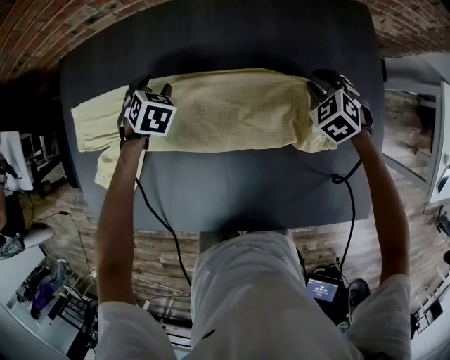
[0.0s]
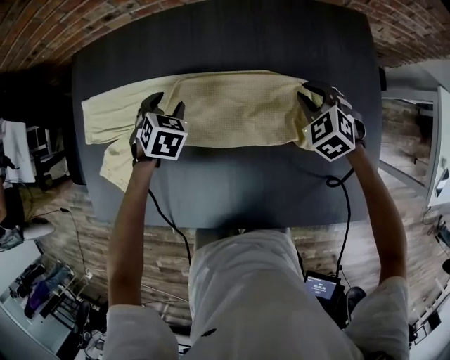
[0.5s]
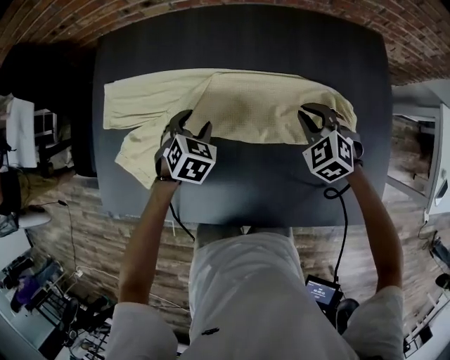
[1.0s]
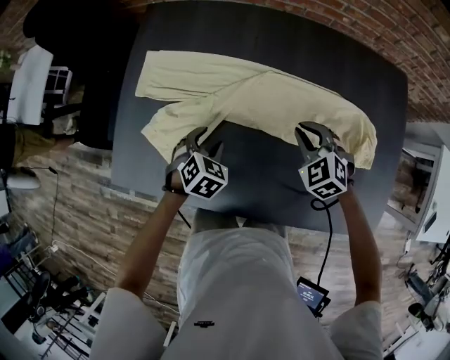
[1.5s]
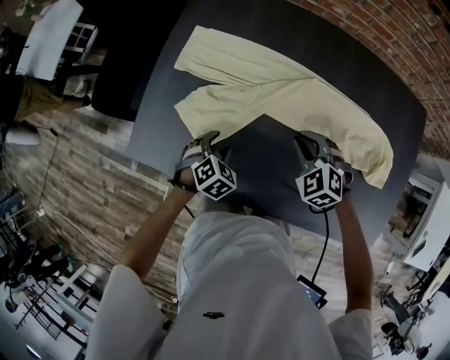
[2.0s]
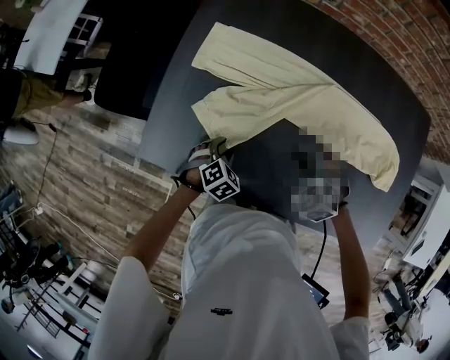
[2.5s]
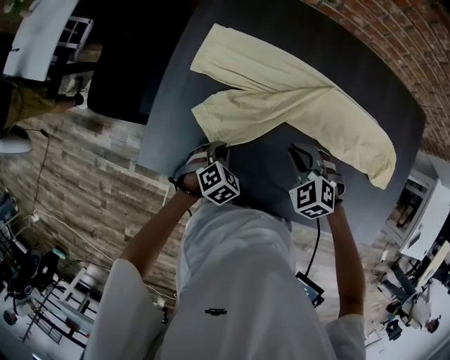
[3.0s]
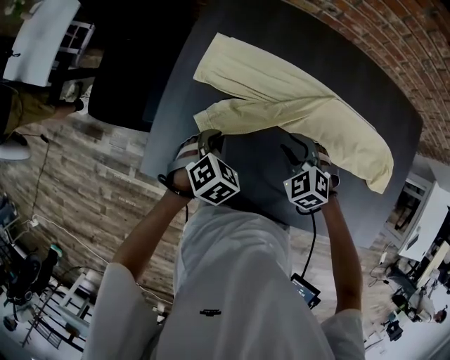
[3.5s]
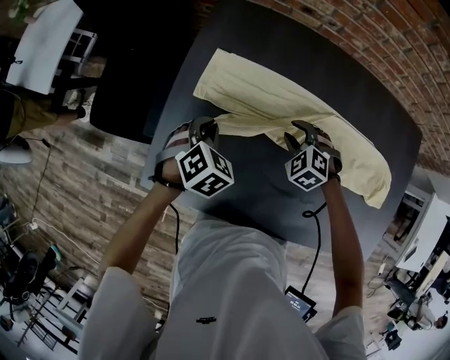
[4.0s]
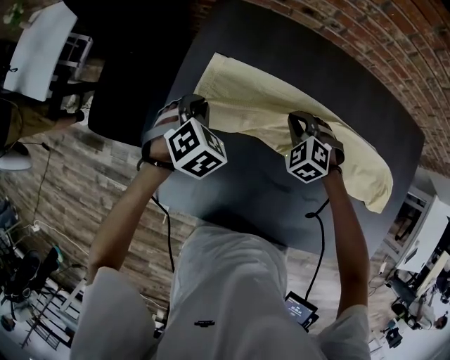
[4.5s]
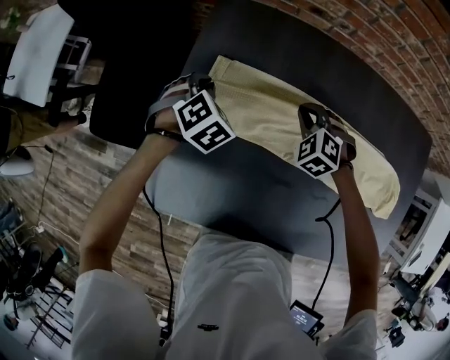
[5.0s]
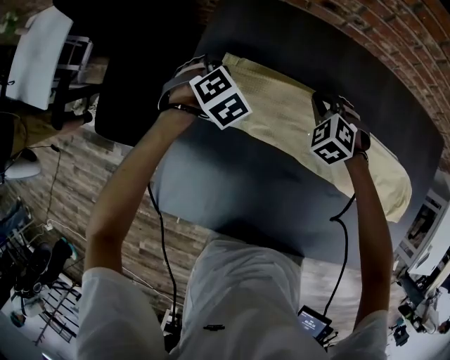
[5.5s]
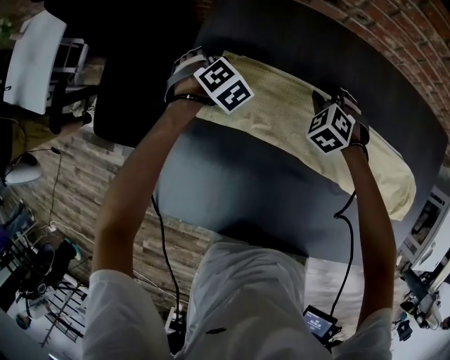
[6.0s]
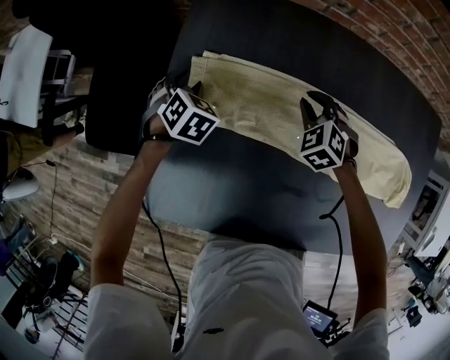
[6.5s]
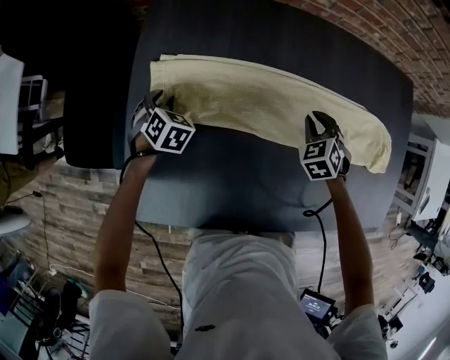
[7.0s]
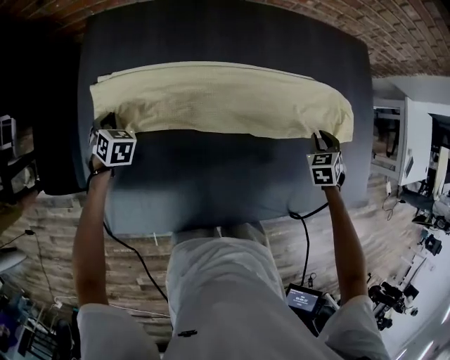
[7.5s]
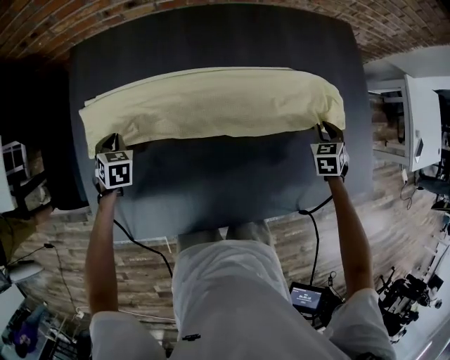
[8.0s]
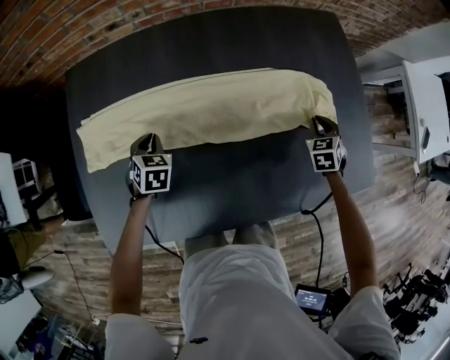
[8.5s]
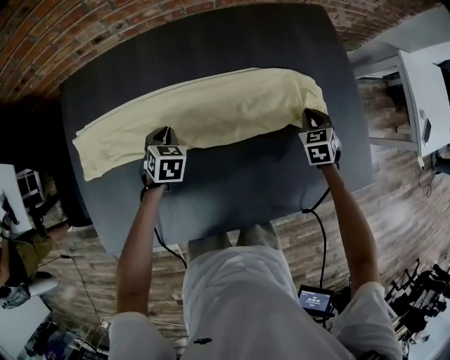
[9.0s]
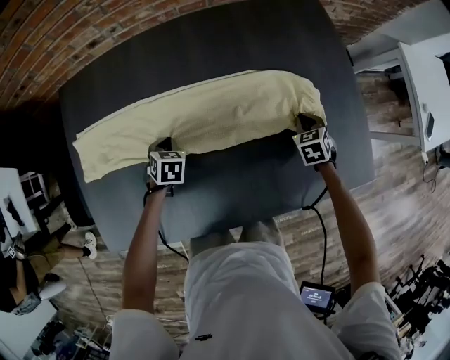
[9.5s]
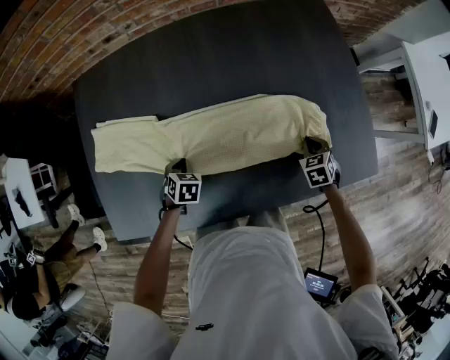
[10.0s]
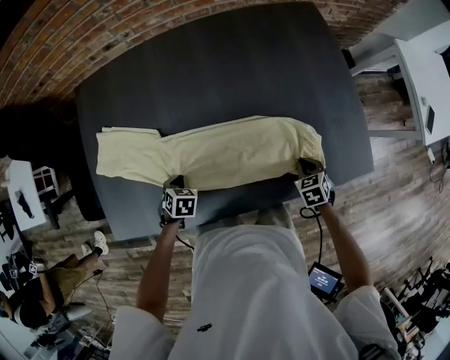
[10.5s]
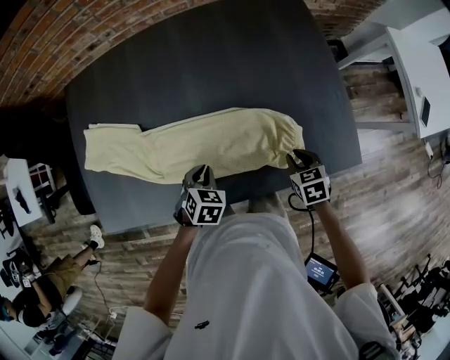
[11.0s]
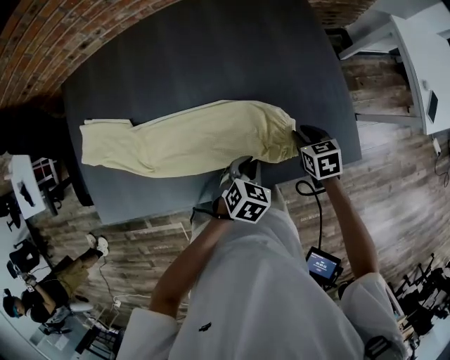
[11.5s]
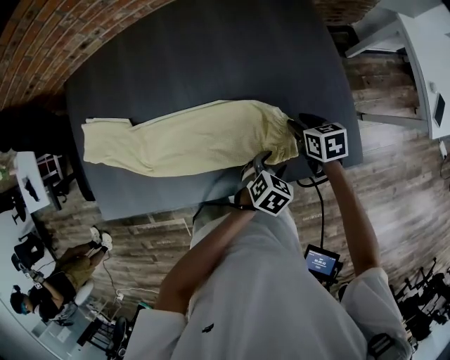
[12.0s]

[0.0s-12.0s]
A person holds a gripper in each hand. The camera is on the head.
0.0s to 2.0s: The right gripper goes roughly 40 cm to the left, and swivels approximately 30 degrees. The left gripper goes about 35 cm backward and to the left.
2.0s to 4.0s: The right gripper heads forward and to the left, covering roughly 15 cm, and opens up; the left gripper moves forward, to the left and upward, approximately 20 cm, and closes.
4.0s to 6.0s: The left gripper heads forward and downward, covering about 25 cm, and opens, while the right gripper goes about 15 cm forward, and closes and opens again.
6.0s to 8.0s: The left gripper shifts by some 20 cm, and closes up. The right gripper ends up some 60 cm from where it was, and twists roughly 50 degrees clockwise, seen from behind.
8.0s to 10.0s: The right gripper travels backward by approximately 10 cm; the left gripper is displaced to the right by about 25 cm.
10.0s to 12.0s: The right gripper moves to the right, roughly 10 cm, rotates some 40 degrees, and opens. The left gripper heads to the right, covering about 50 cm, turns by about 30 degrees, and opens up.

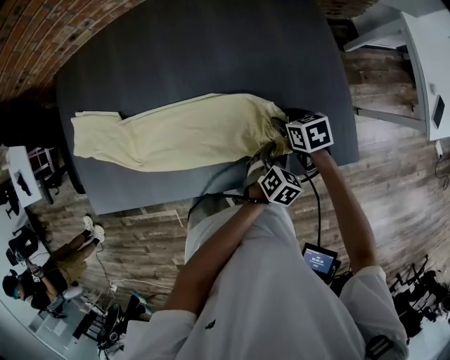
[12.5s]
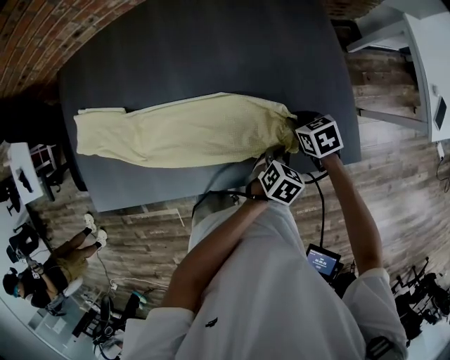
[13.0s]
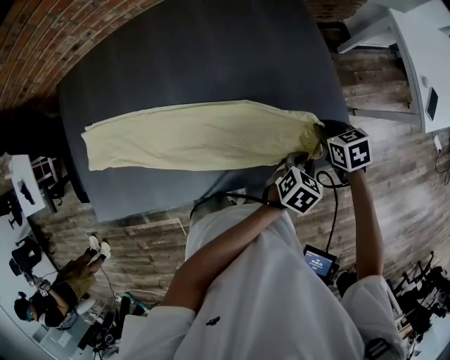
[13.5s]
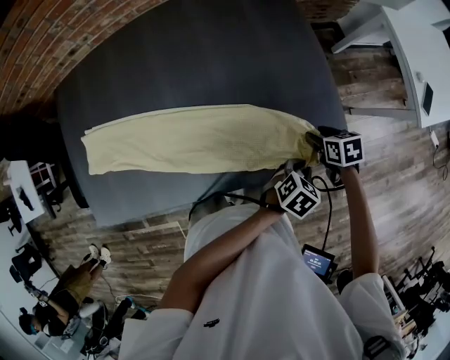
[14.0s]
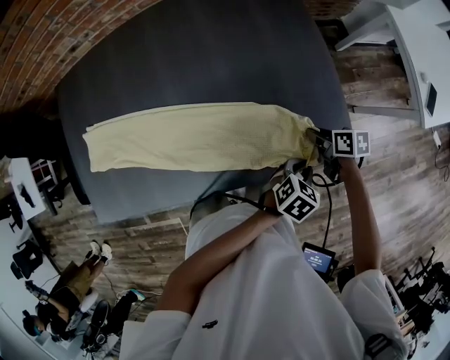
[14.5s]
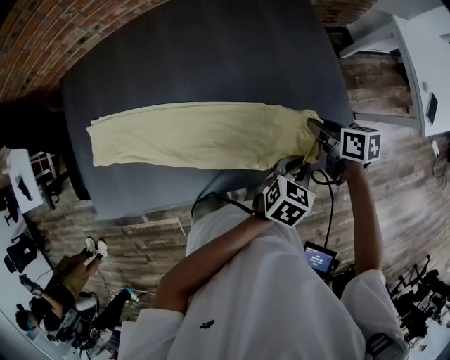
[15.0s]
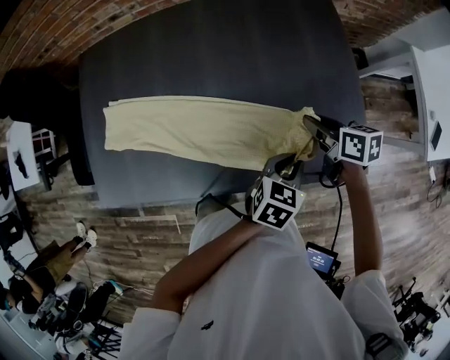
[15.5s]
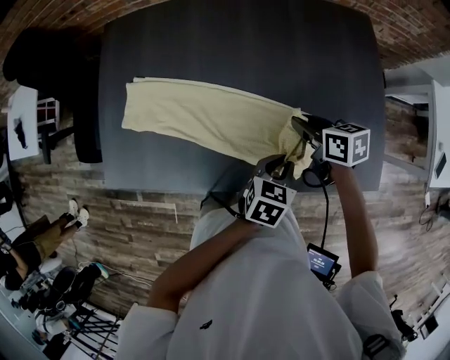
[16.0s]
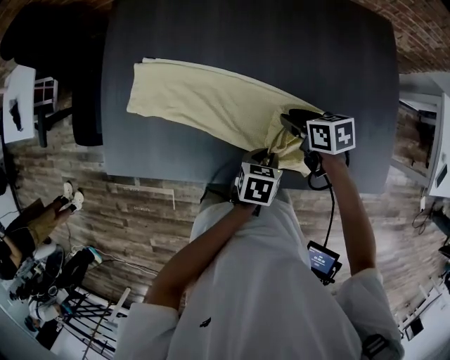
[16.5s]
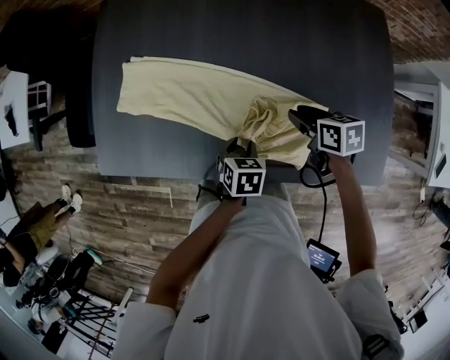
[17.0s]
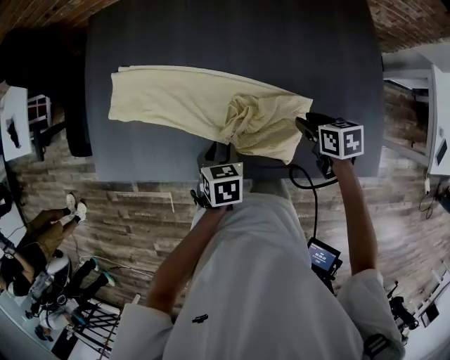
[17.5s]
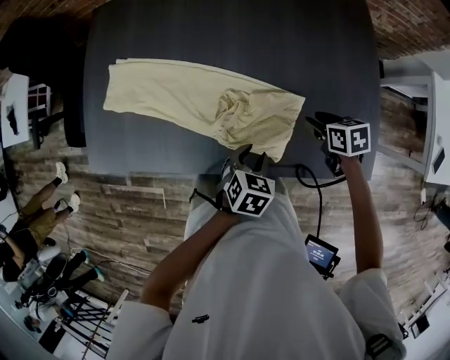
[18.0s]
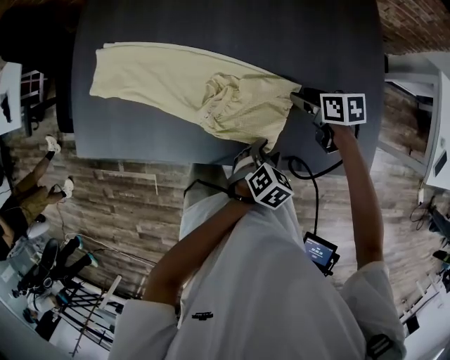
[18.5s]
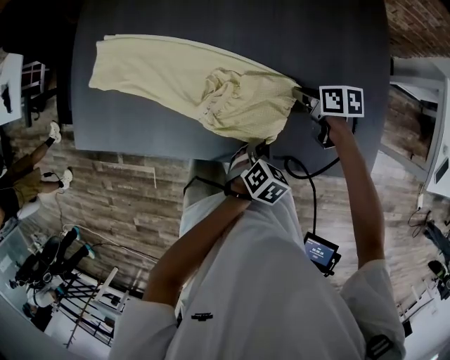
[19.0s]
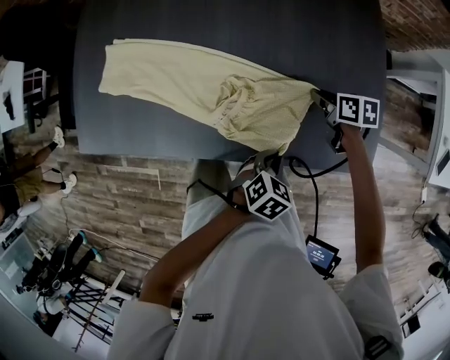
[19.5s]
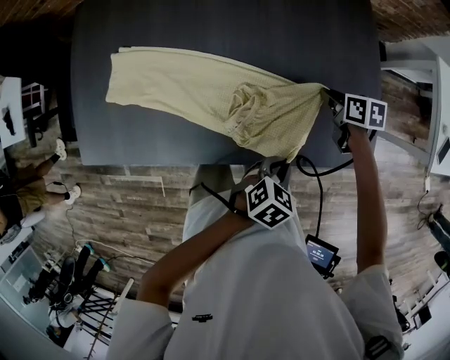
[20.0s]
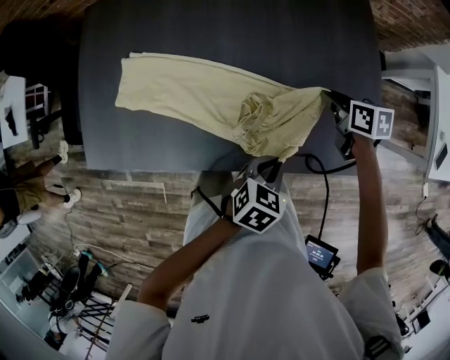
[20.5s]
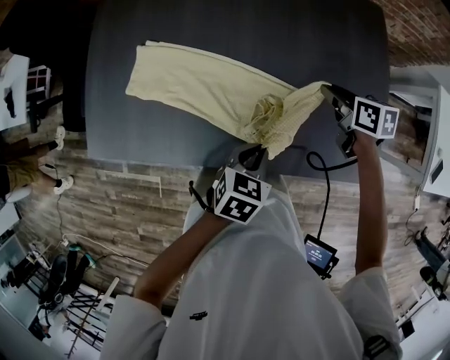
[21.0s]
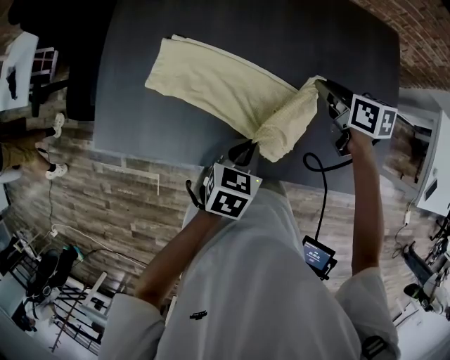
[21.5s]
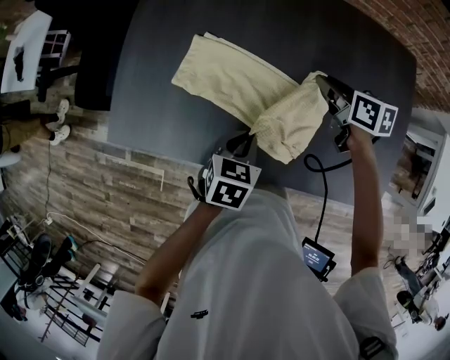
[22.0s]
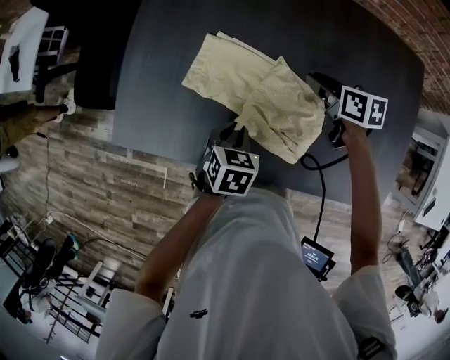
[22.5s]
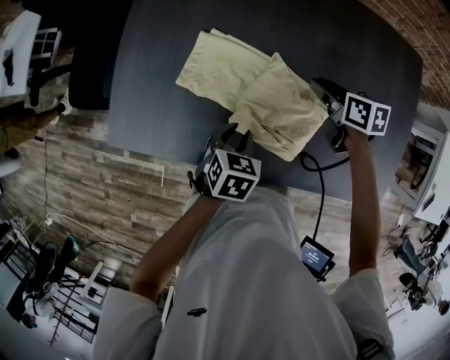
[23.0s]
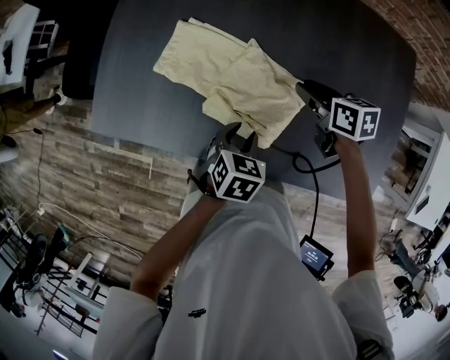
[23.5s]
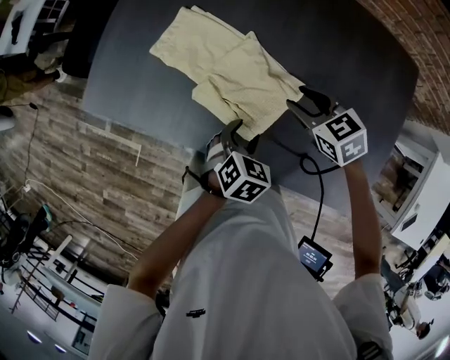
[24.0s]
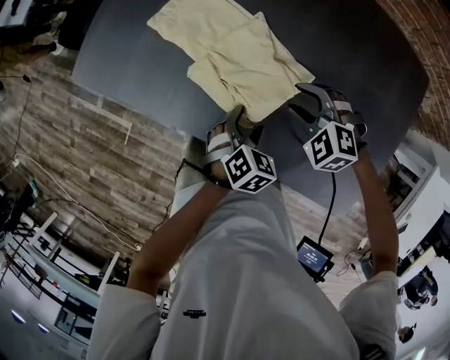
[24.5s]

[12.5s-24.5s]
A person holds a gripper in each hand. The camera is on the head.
12.5s to 14.5s: The right gripper shifts by approximately 10 cm, changes its angle by roughly 30 degrees, and closes; the left gripper shifts some 10 cm upward, swivels some 20 degrees, and closes.
14.5s to 16.5s: The left gripper moves about 10 cm upward and comes back, and rotates around the line of its fingers by approximately 40 degrees, counterclockwise from behind. The right gripper changes place by some 40 cm, swivels approximately 30 degrees, and opens.
16.5s to 18.5s: The right gripper is displaced to the right by roughly 20 cm, and opens its fingers; the left gripper heads to the right, backward and downward, covering some 20 cm, swivels approximately 30 degrees, and opens up.
18.5s to 20.5s: The right gripper travels upward by approximately 5 cm, and closes up. Meanwhile the left gripper goes roughly 10 cm upward, and closes up.
20.5s to 22.5s: Both grippers travel together to the left and forward, about 35 cm. The right gripper opens its fingers. The left gripper swivels about 30 degrees.
22.5s to 24.5s: The left gripper moves to the right and backward, roughly 20 cm, and opens its fingers; the right gripper travels backward by about 15 cm, twists approximately 90 degrees counterclockwise, seen from behind, and opens up.

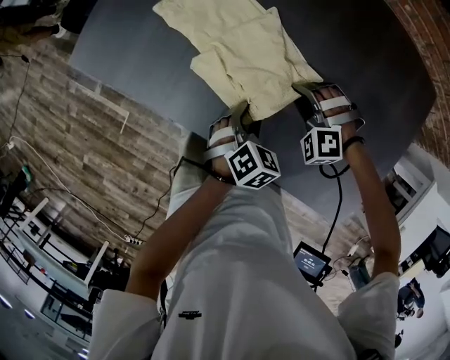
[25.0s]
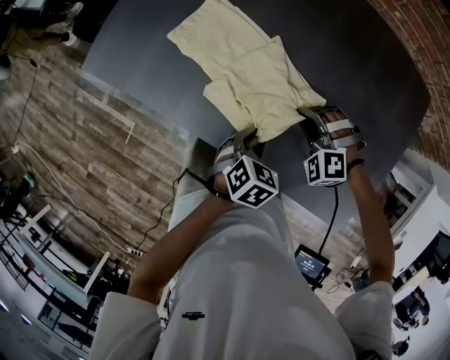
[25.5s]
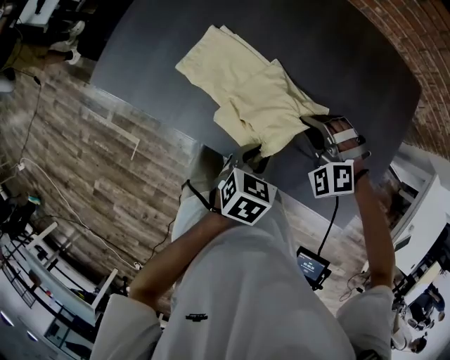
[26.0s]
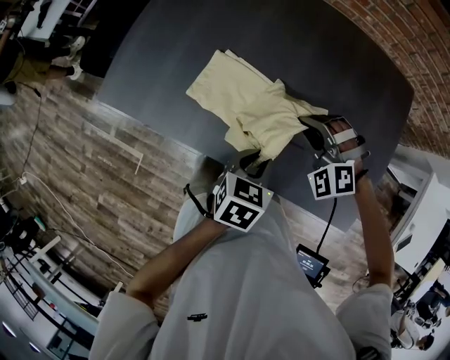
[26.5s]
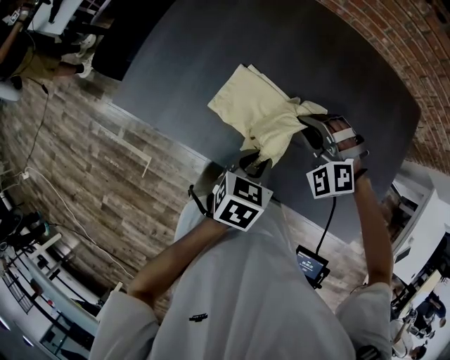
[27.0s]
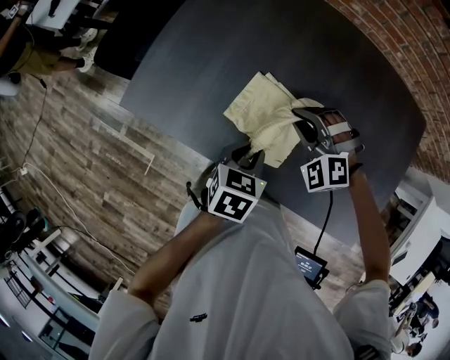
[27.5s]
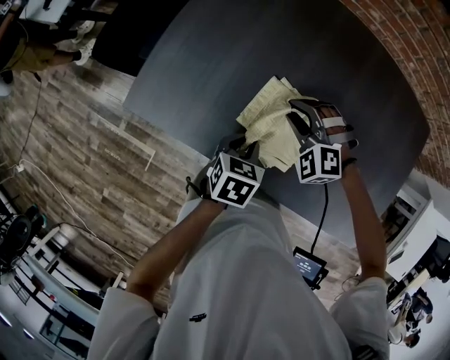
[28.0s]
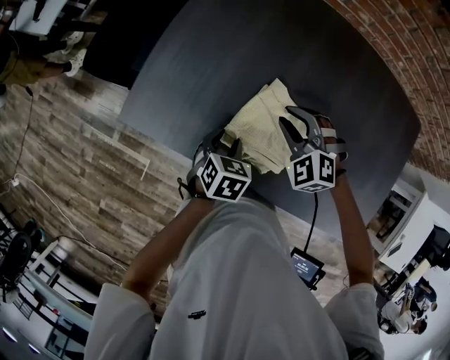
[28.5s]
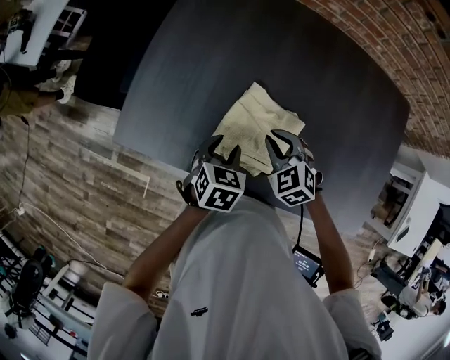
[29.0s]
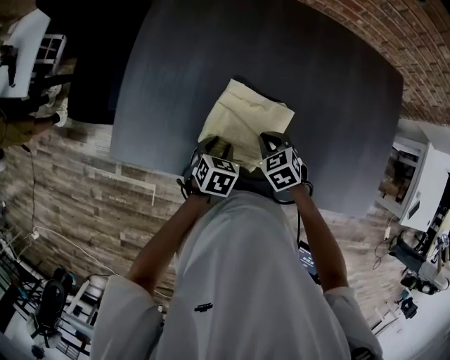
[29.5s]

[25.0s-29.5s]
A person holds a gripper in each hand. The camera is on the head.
25.0s to 27.0s: The right gripper shifts some 20 cm upward and to the left. Meanwhile the left gripper goes some 15 cm upward, rotates approximately 30 degrees, and closes.
27.0s to 29.5s: The left gripper is displaced to the left, downward and forward by roughly 20 cm, and opens up, while the right gripper travels downward and to the left by about 15 cm, and twists some 70 degrees clockwise, seen from behind.
